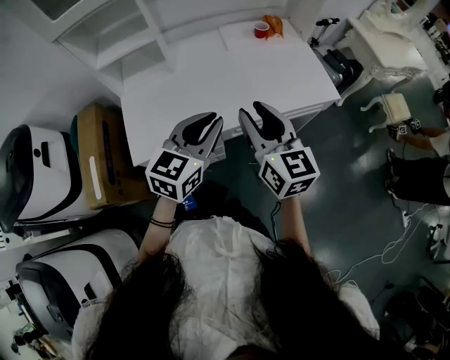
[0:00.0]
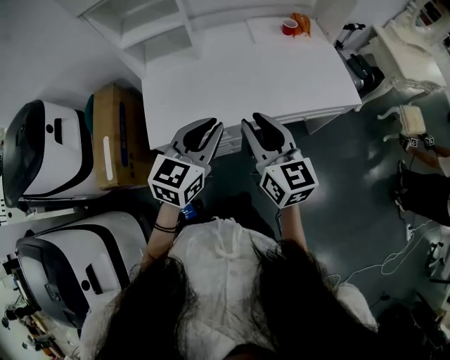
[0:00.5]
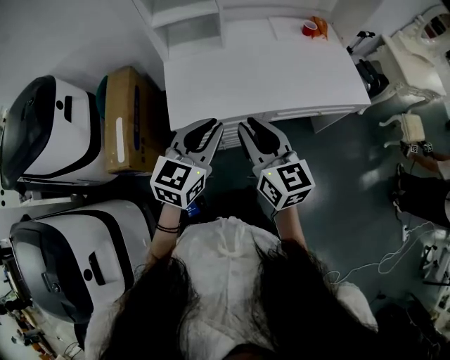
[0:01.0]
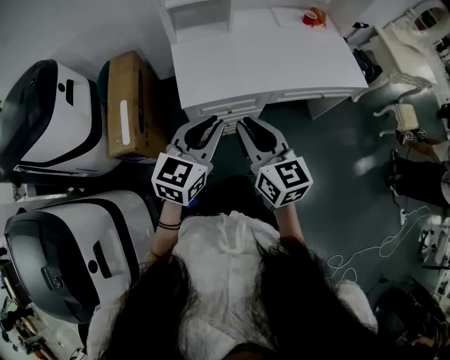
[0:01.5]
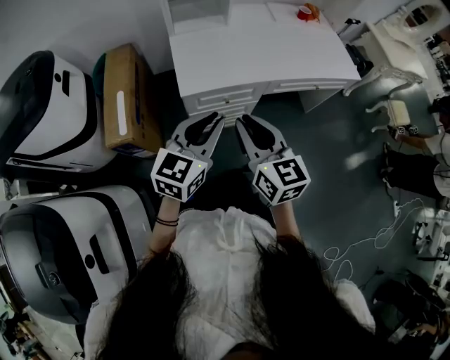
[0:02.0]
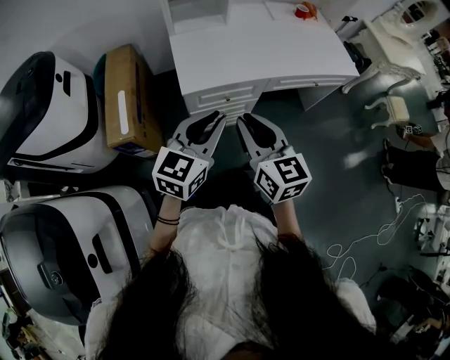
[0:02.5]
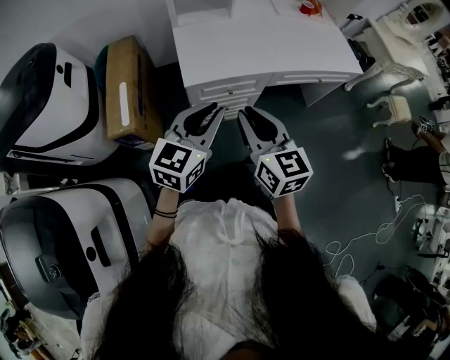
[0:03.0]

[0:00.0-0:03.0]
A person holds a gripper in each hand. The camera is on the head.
0:00.0 to 0:01.5: Both grippers travel together to the left and backward, about 30 cm.
0:01.5 to 0:03.0: The two grippers go approximately 5 cm backward.

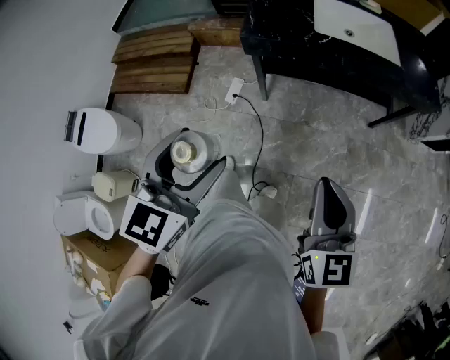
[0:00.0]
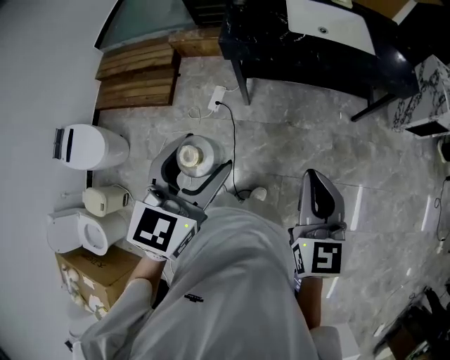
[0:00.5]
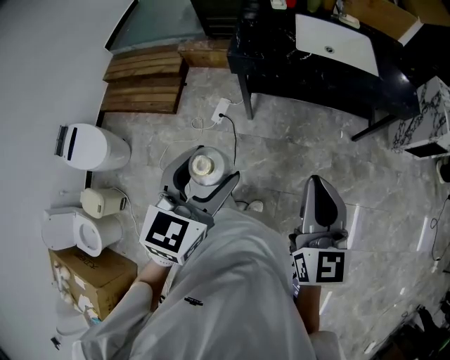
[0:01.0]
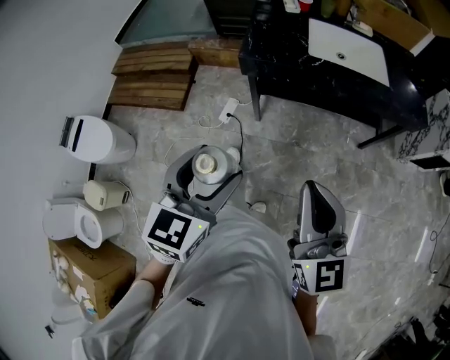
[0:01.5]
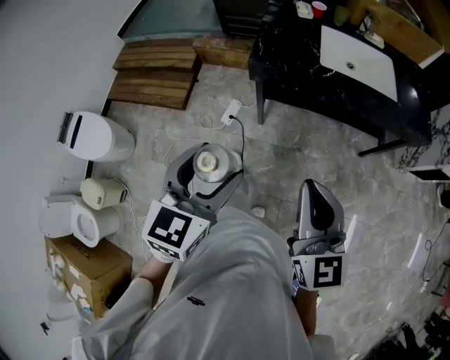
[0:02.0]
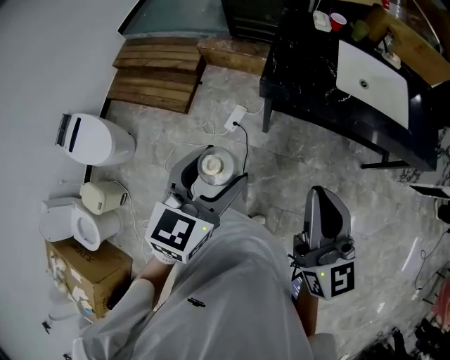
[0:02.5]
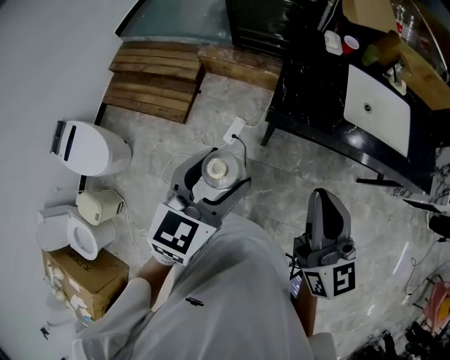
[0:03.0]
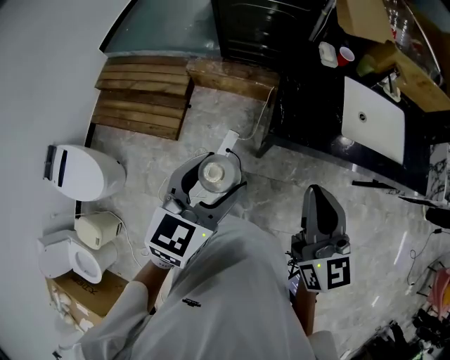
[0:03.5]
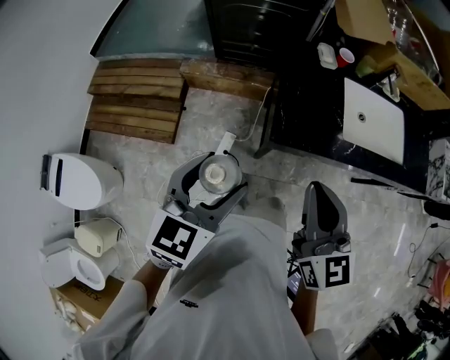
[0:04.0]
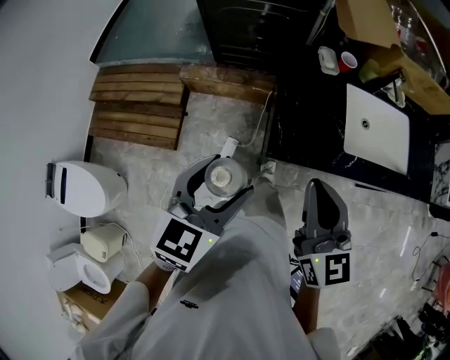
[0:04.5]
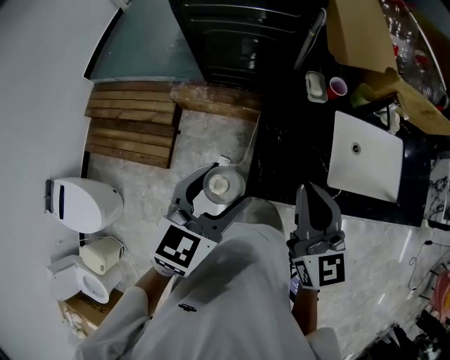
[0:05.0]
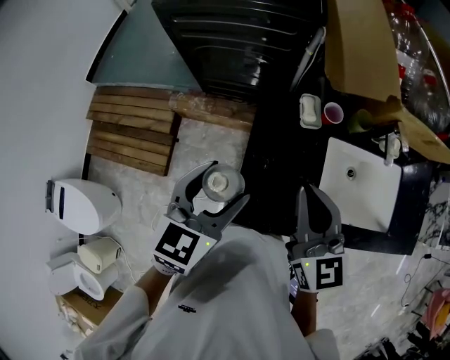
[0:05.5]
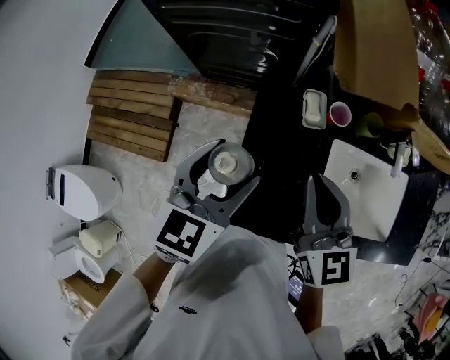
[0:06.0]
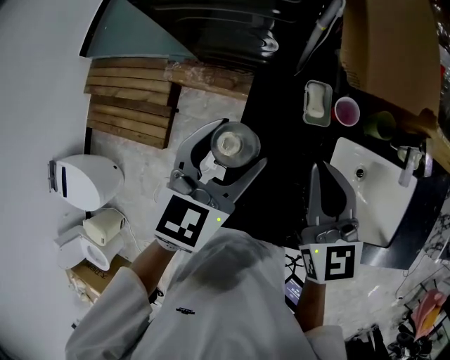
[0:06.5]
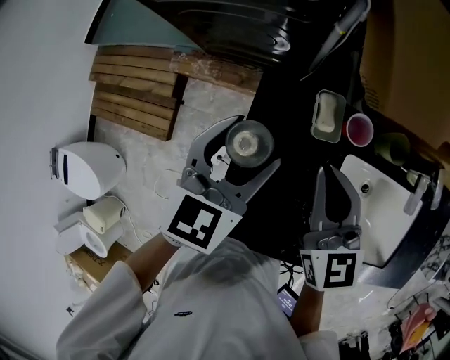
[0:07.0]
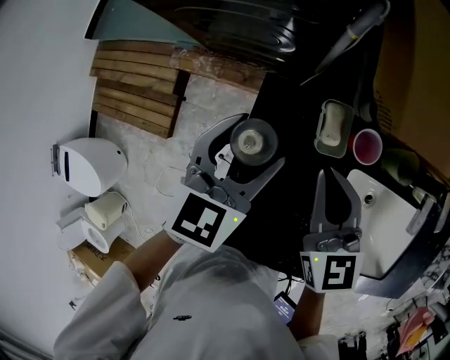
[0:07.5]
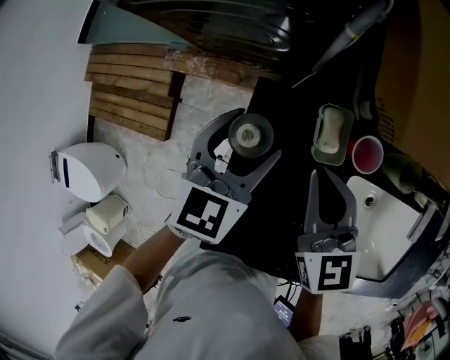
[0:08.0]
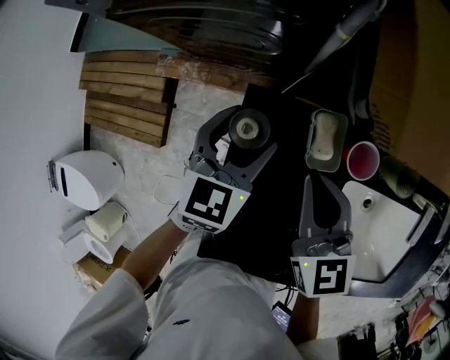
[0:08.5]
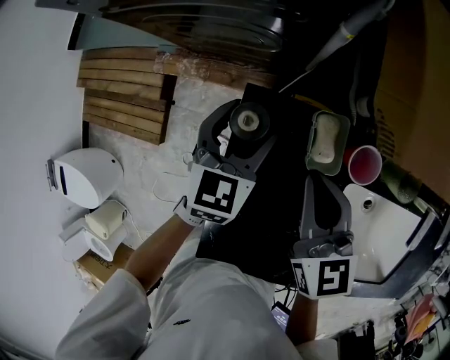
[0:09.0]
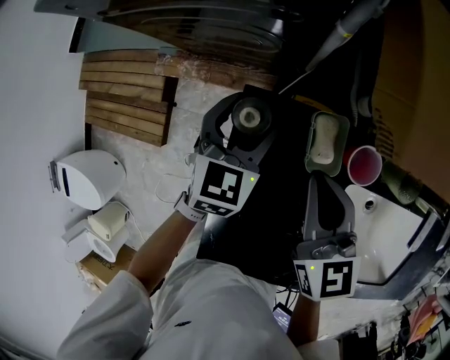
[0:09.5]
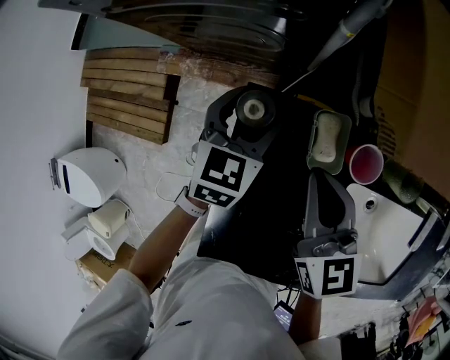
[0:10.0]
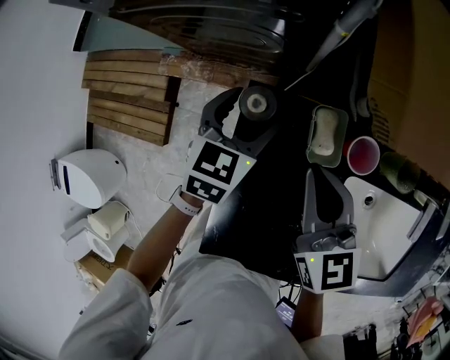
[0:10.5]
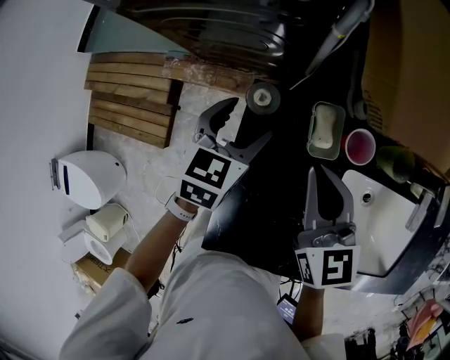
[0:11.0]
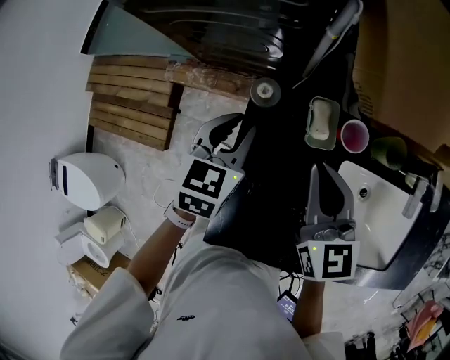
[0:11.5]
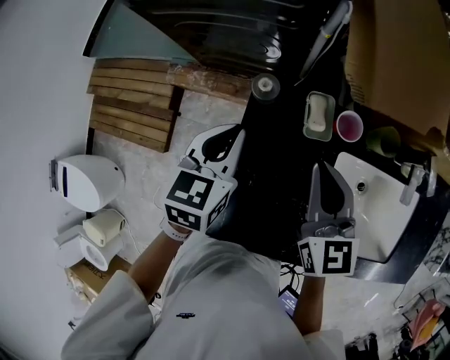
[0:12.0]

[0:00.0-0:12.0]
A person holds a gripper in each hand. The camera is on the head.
0:00.0 to 0:02.0: The right gripper heads to the left and forward, covering approximately 10 cm.
0:02.0 to 0:04.0: Both grippers travel together forward and to the left, approximately 35 cm.
0:04.0 to 0:06.0: The two grippers go approximately 35 cm forward.
0:06.0 to 0:08.0: The grippers both shift downward and forward by approximately 20 cm.
0:08.0 to 0:10.0: The left gripper travels downward and forward by approximately 10 cm.
0:10.0 to 0:12.0: The right gripper is displaced upward and backward by about 10 cm. The left gripper heads upward and backward, covering about 20 cm, and closes.

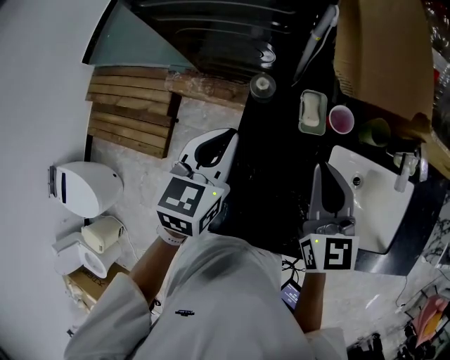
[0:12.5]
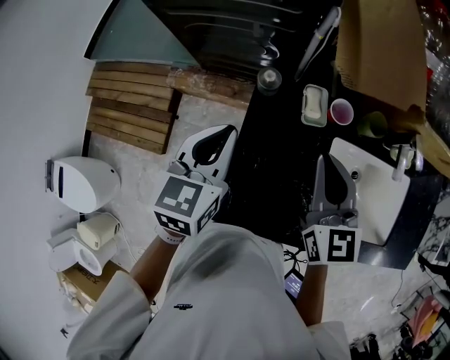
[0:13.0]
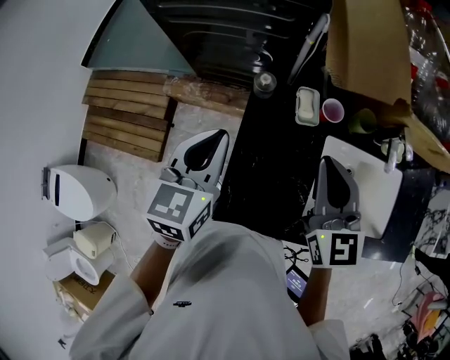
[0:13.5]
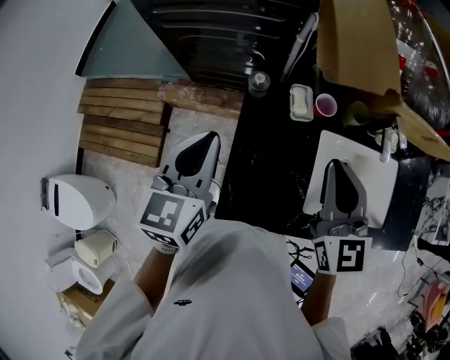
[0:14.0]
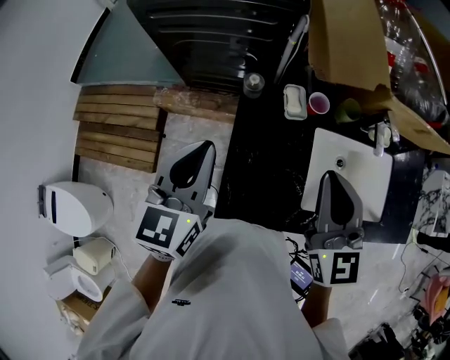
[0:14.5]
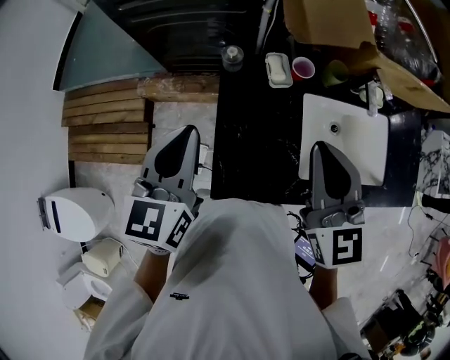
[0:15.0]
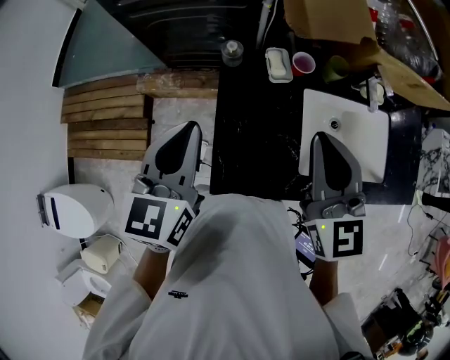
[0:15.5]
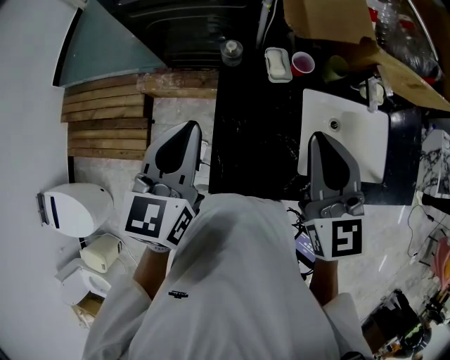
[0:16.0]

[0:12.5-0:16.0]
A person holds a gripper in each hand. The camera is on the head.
0:12.5 to 0:14.5: Both grippers travel together upward and backward, about 15 cm.
0:14.5 to 0:16.0: The grippers move only a little.

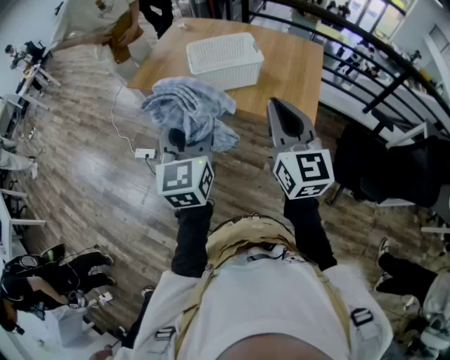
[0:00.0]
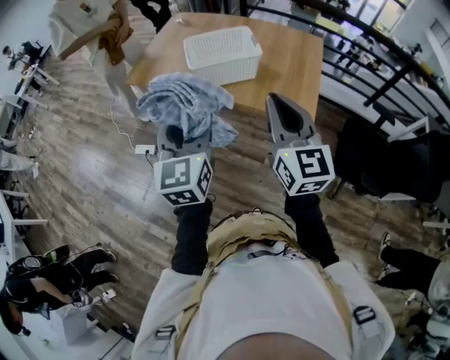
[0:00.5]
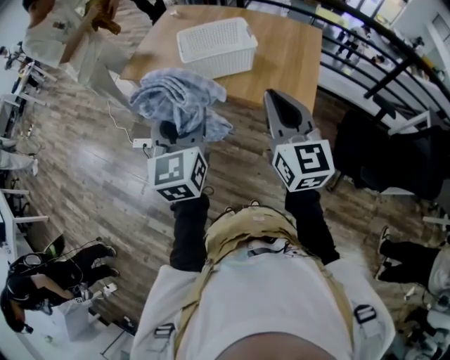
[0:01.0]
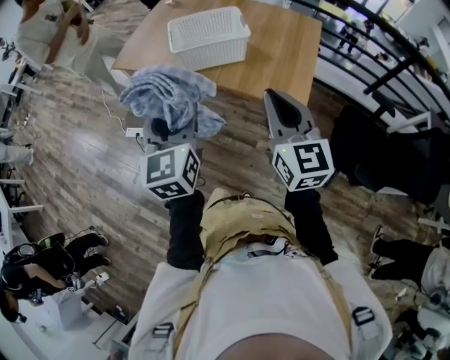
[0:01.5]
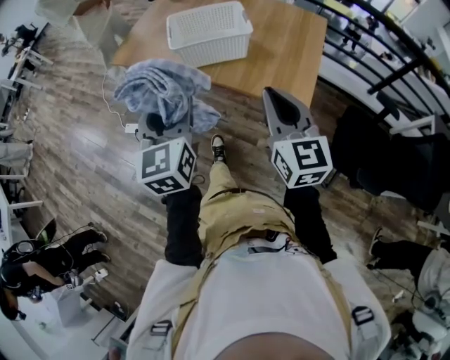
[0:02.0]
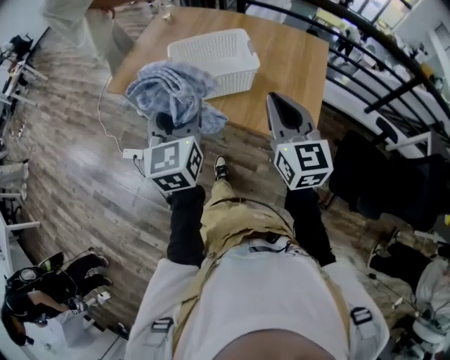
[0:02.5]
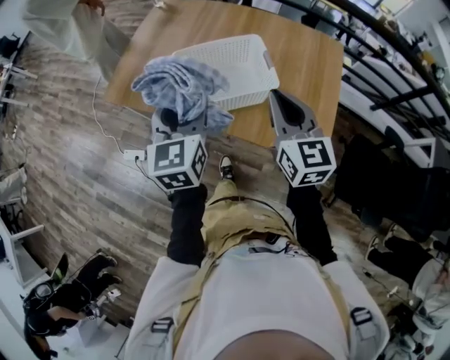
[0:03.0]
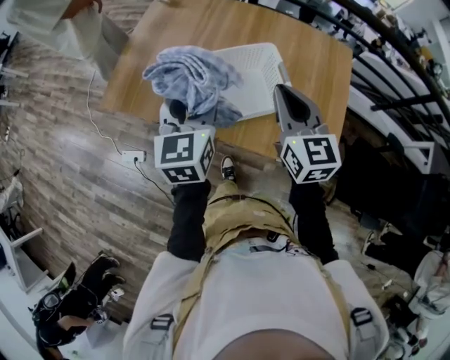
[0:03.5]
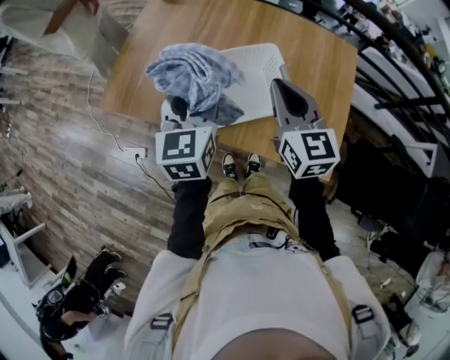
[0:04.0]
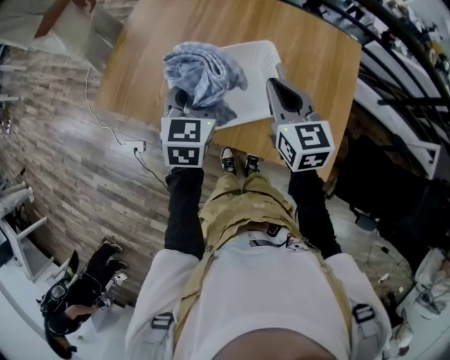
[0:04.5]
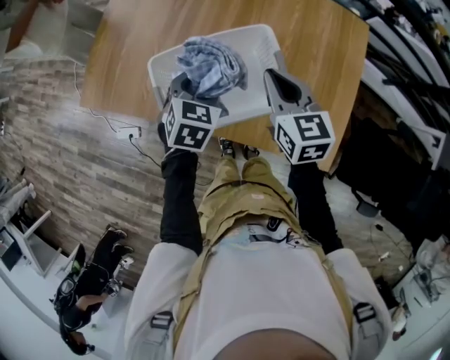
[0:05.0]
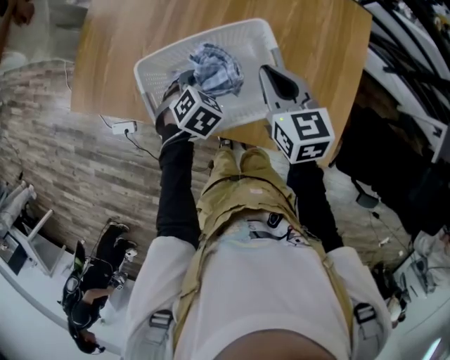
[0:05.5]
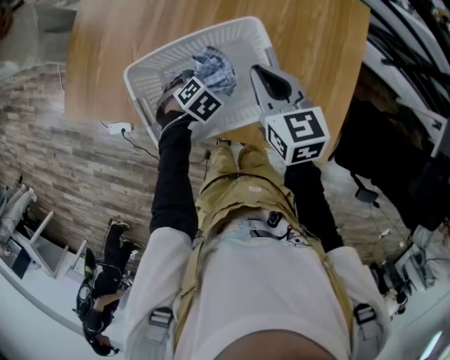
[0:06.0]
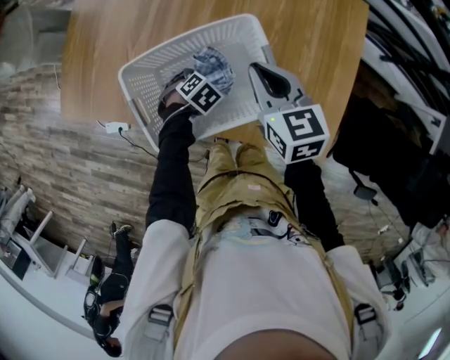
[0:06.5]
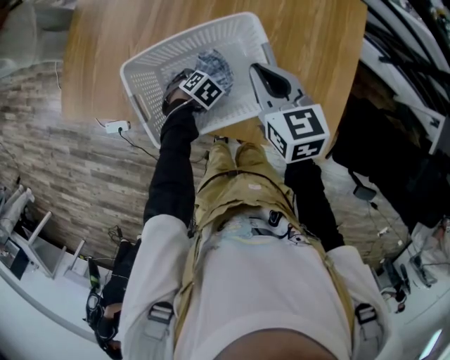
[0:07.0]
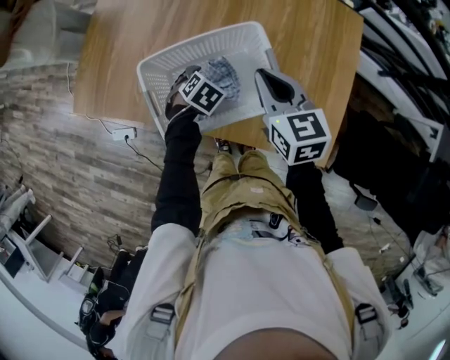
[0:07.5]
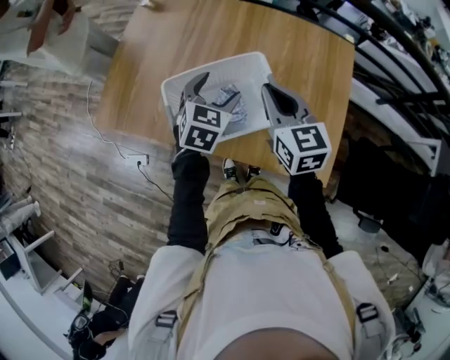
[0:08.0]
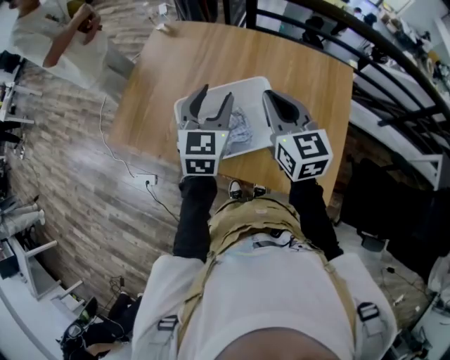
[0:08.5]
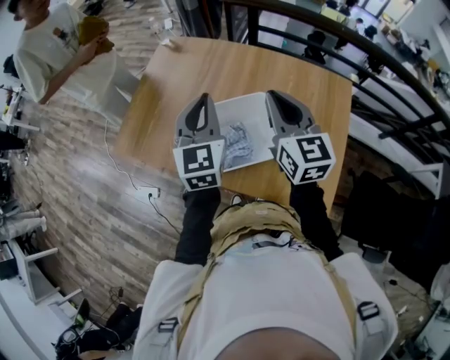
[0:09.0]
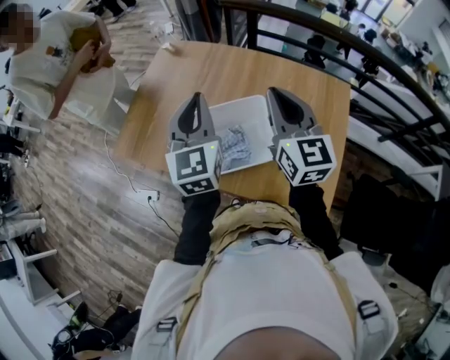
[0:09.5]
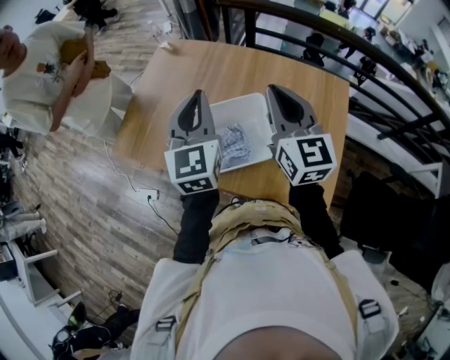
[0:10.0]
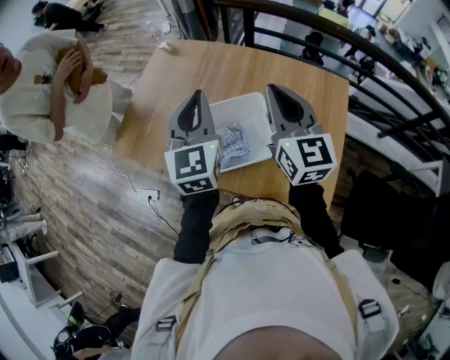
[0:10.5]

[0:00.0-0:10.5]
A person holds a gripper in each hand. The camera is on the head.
0:00.0 to 0:02.0: The right gripper heads downward and to the right, covering roughly 10 cm. Meanwhile the left gripper shifts by some 5 cm.
0:02.0 to 0:04.0: Both grippers move forward, some 40 cm.
0:04.0 to 0:06.5: The right gripper shifts roughly 15 cm downward, and swivels approximately 20 degrees, while the left gripper is displaced downward by some 40 cm, and tilts its fingers some 70 degrees downward.
0:06.5 to 0:08.5: The left gripper moves upward, about 40 cm, points its fingers about 70 degrees further upward, and opens and closes again. The right gripper goes about 15 cm upward, and rotates roughly 20 degrees.
0:08.5 to 0:10.5: The two grippers go roughly 10 cm upward. The left gripper closes.
